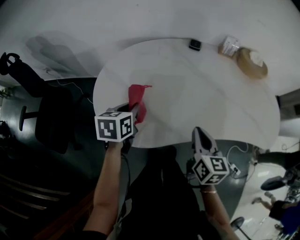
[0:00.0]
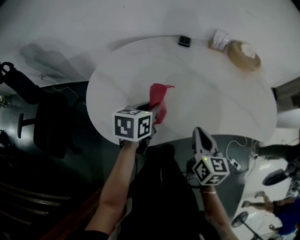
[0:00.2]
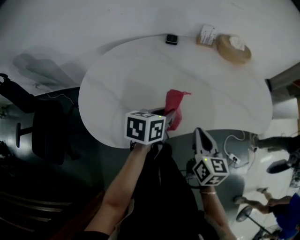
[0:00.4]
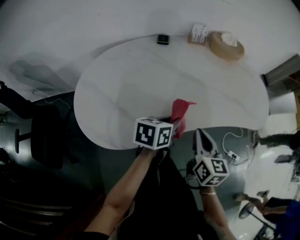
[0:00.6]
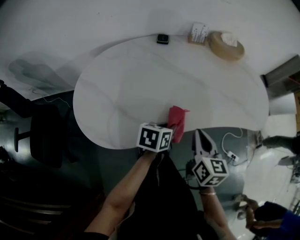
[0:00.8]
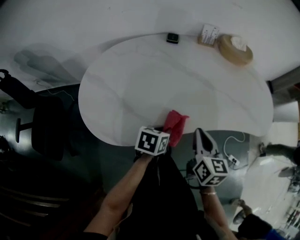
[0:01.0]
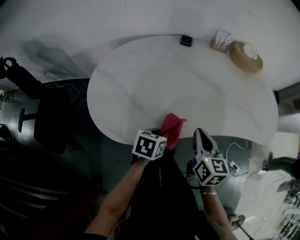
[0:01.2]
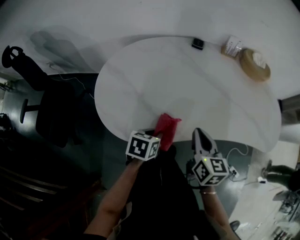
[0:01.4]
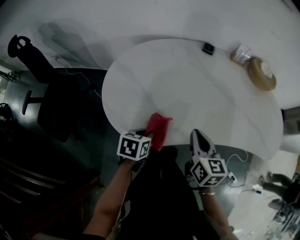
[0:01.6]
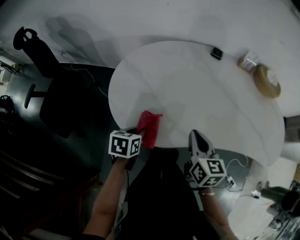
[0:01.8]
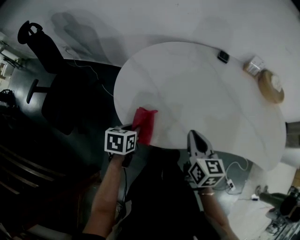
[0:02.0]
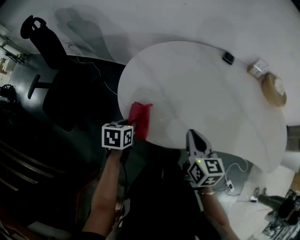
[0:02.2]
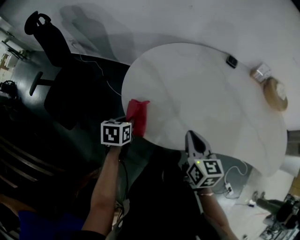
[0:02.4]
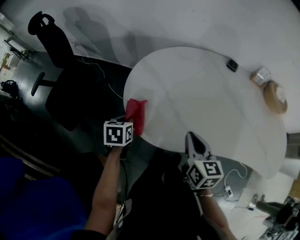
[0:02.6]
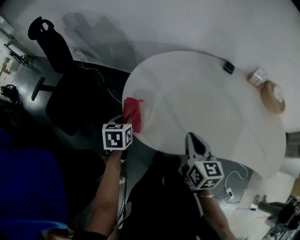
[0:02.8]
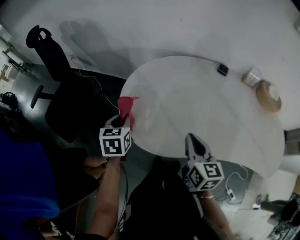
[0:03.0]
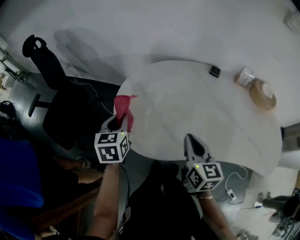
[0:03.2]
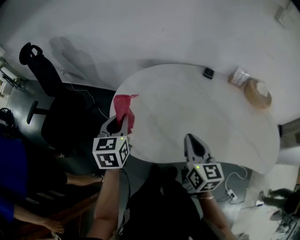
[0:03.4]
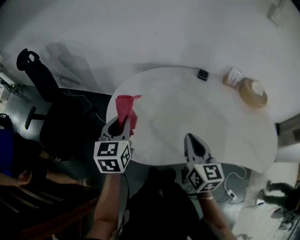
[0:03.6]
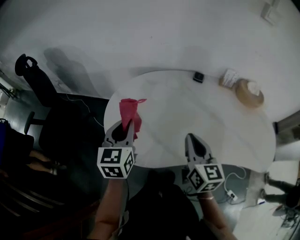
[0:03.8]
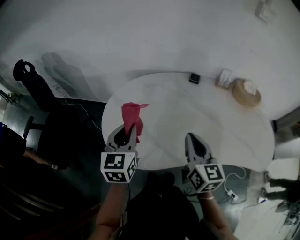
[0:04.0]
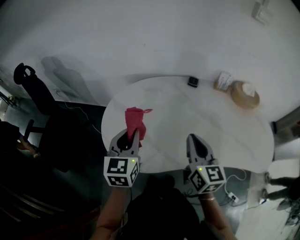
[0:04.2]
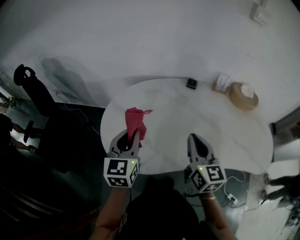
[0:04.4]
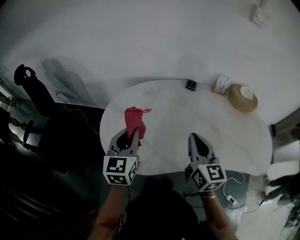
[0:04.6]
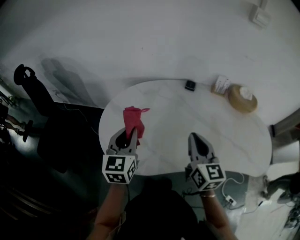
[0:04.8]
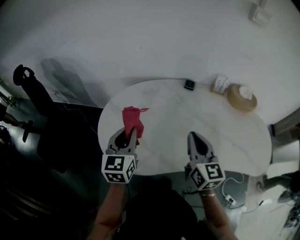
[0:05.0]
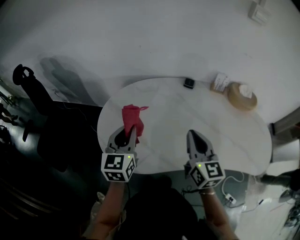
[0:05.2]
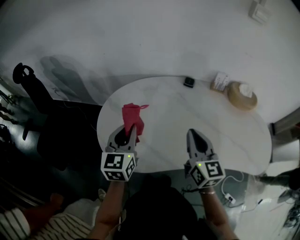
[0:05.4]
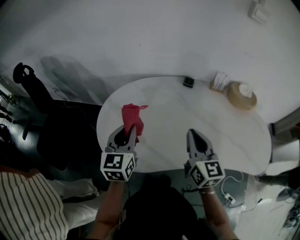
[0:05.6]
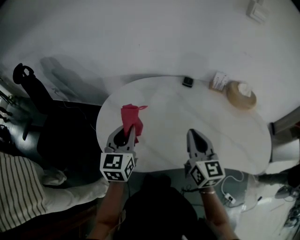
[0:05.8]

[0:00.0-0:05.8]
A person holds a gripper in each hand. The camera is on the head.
0:01.4 to 0:02.8: The left gripper moves about 25 cm, and swivels about 40 degrees, while the right gripper ends up some 15 cm from where it was.
0:02.8 to 0:04.4: The right gripper shifts some 15 cm to the right and upward, and turns by some 20 degrees; the left gripper goes approximately 25 cm upward and to the right, and points its fingers some 30 degrees further upward.
0:04.4 to 0:05.8: There are only small adjustments of the grippers.

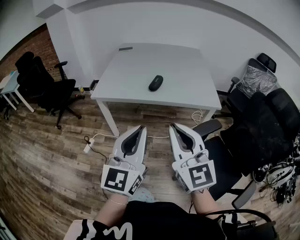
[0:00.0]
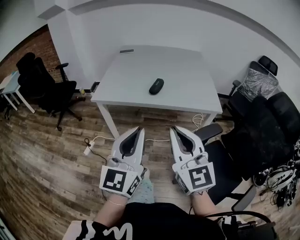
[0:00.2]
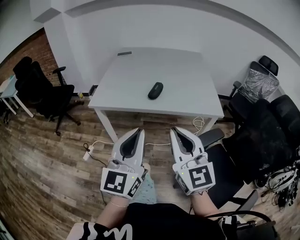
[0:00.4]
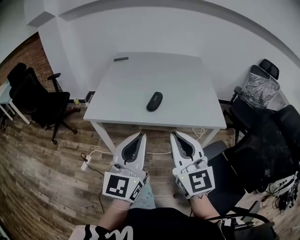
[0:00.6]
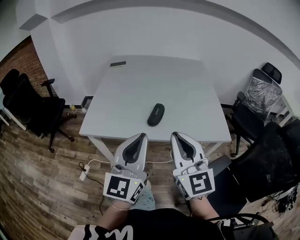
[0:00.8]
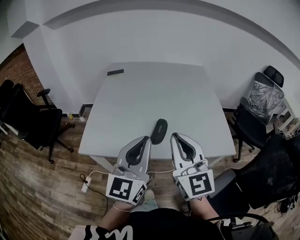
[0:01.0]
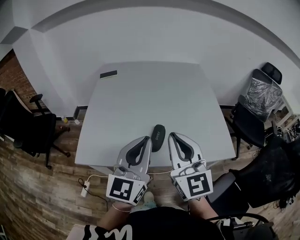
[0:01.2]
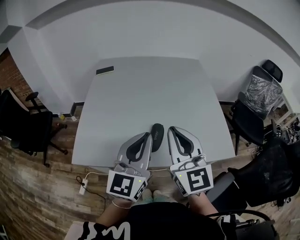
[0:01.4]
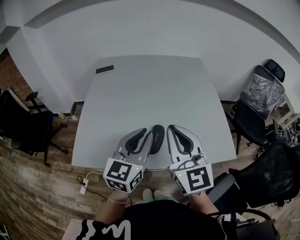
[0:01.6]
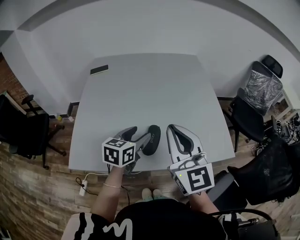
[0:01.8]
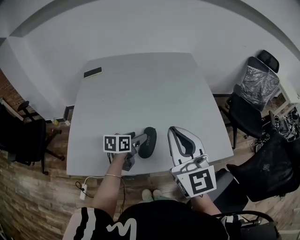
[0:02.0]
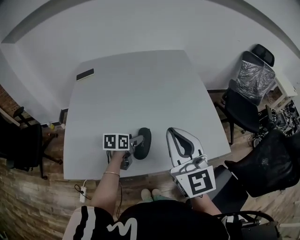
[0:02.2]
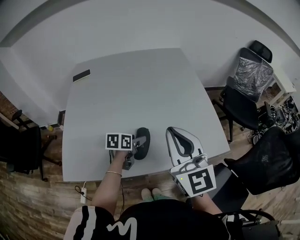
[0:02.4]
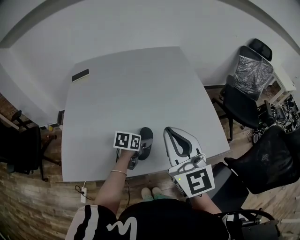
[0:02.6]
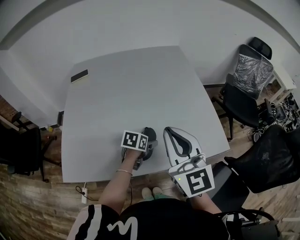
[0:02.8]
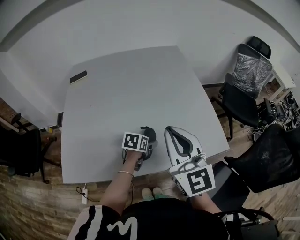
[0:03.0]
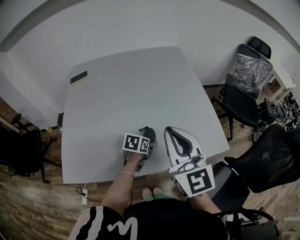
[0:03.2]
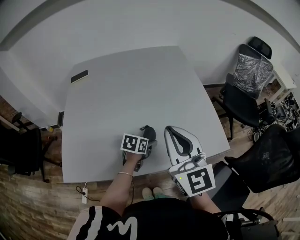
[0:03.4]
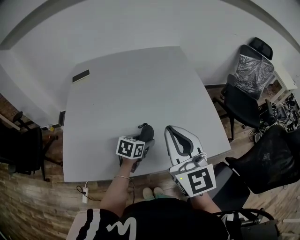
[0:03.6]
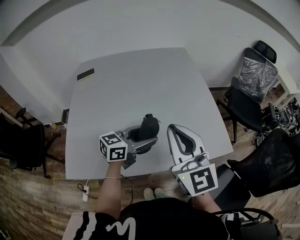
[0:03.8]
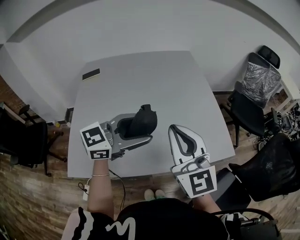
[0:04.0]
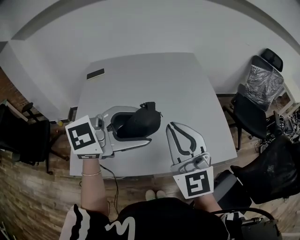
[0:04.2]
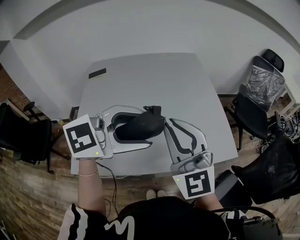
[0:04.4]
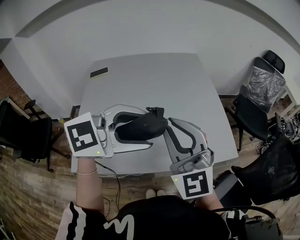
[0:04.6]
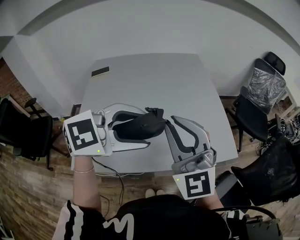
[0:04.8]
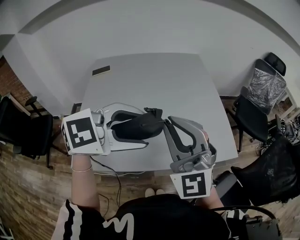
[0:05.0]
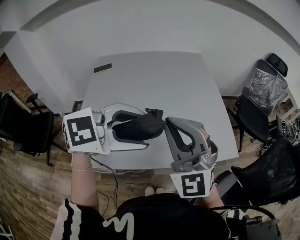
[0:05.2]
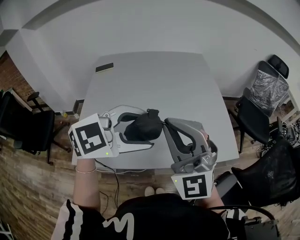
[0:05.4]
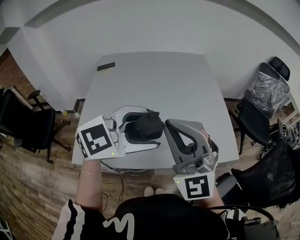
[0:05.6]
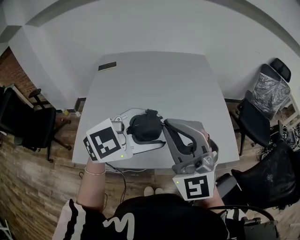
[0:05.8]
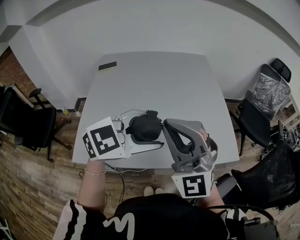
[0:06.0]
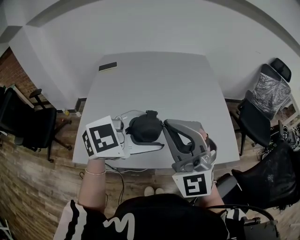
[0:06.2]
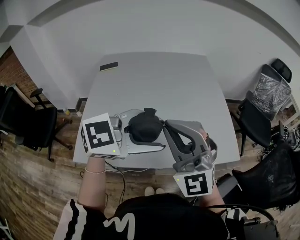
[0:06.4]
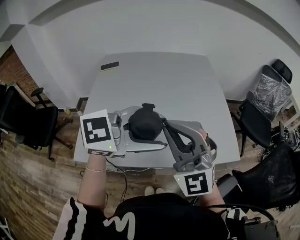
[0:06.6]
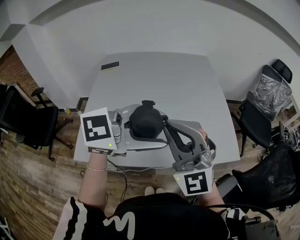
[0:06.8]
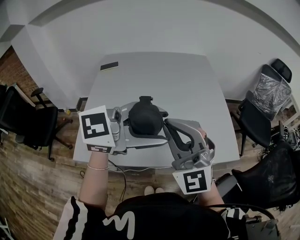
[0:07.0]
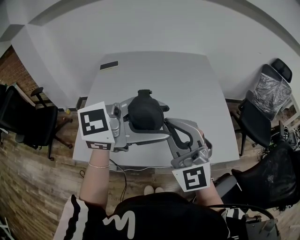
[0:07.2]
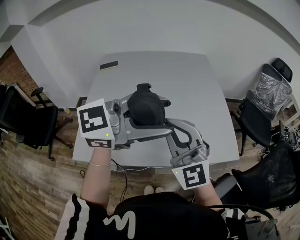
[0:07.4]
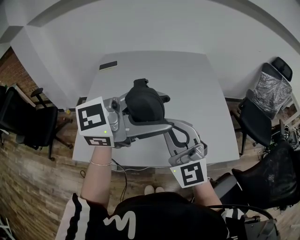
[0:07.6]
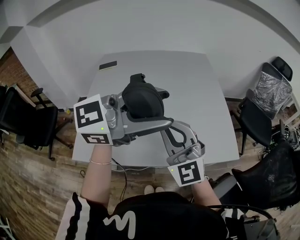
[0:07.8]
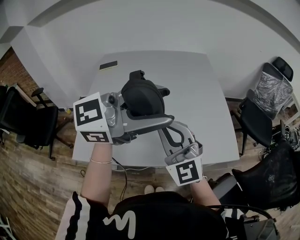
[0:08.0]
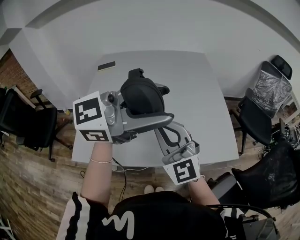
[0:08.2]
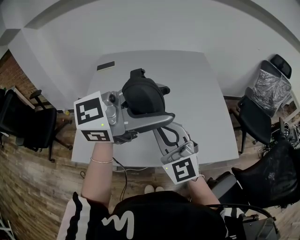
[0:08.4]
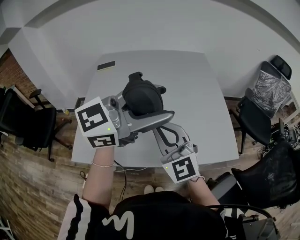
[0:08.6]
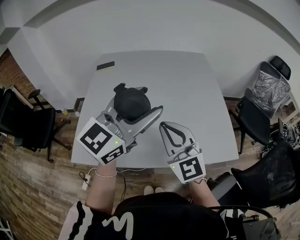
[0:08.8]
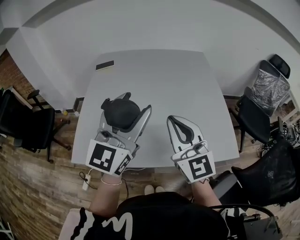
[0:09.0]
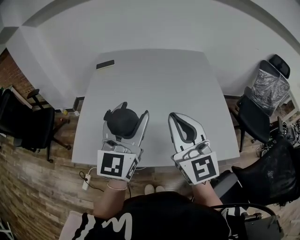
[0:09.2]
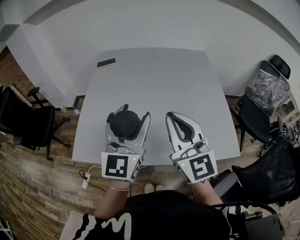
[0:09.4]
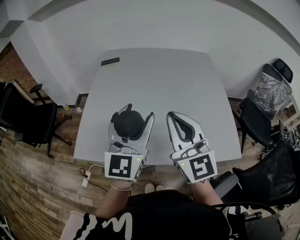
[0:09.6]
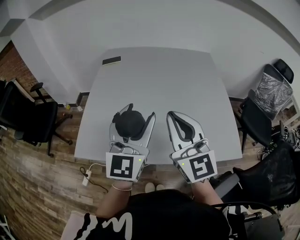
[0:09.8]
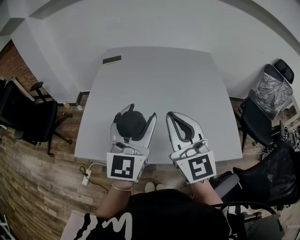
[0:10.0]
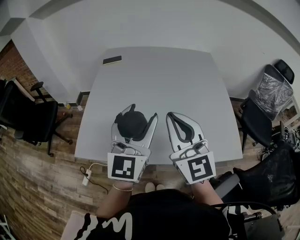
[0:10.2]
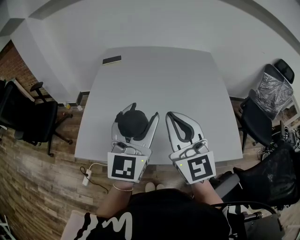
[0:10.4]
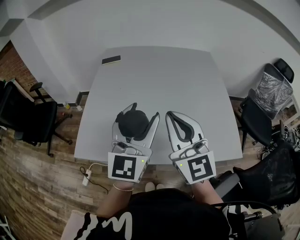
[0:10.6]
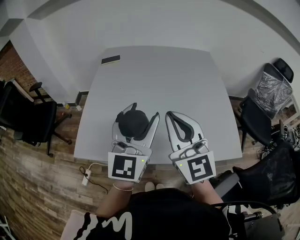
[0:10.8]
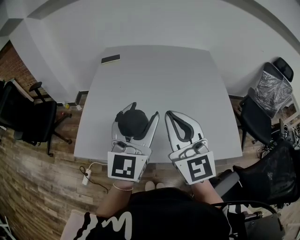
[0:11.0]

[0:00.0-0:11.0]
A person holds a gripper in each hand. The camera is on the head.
0:00.0 to 0:01.6: The pair of grippers is taken forward, about 50 cm. The left gripper rotates approximately 20 degrees.
0:01.6 to 0:03.2: The right gripper moves to the right and forward, some 10 cm, while the left gripper moves downward, some 25 cm, points its fingers roughly 40 degrees further downward, and opens its fingers.
0:03.2 to 0:04.8: The right gripper moves upward, to the left and backward, roughly 10 cm, and rotates some 30 degrees. The left gripper travels upward by about 35 cm, and rotates around the line of its fingers by about 60 degrees, clockwise from behind.
0:04.8 to 0:06.2: The grippers move only a little.
0:06.2 to 0:07.8: The right gripper goes approximately 5 cm downward. The left gripper is displaced upward by about 10 cm, and changes its angle by roughly 30 degrees.
0:07.8 to 0:09.4: The right gripper swivels approximately 20 degrees. The left gripper shifts by roughly 15 cm, and turns by roughly 60 degrees.
0:09.4 to 0:11.0: There are only small adjustments of the grippers.

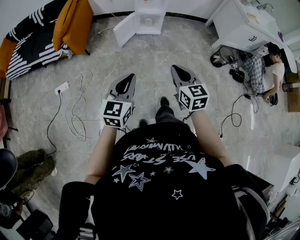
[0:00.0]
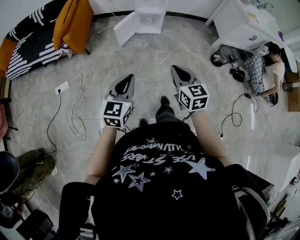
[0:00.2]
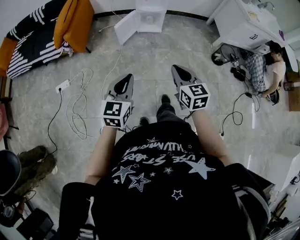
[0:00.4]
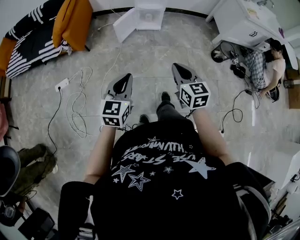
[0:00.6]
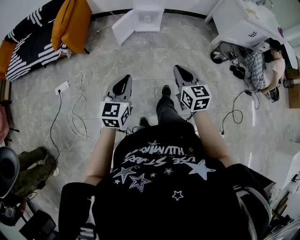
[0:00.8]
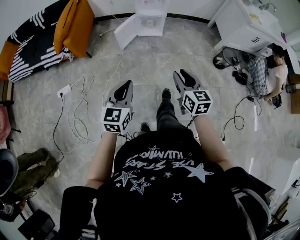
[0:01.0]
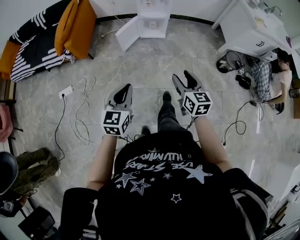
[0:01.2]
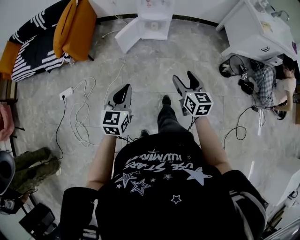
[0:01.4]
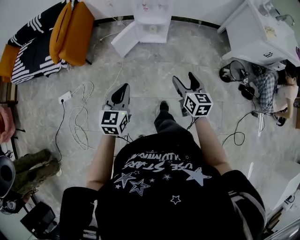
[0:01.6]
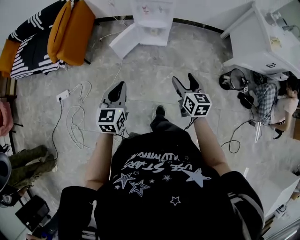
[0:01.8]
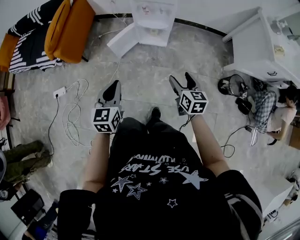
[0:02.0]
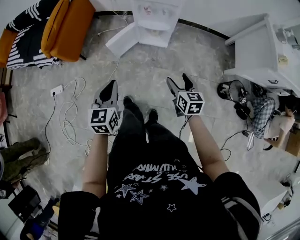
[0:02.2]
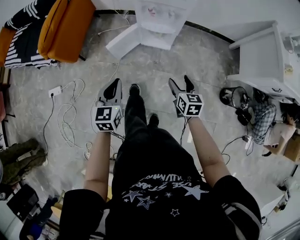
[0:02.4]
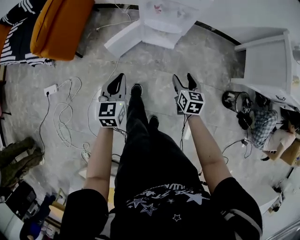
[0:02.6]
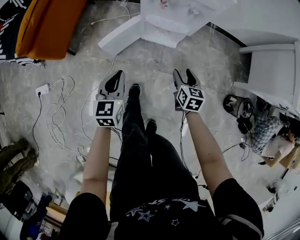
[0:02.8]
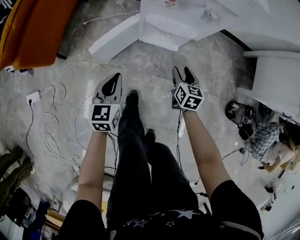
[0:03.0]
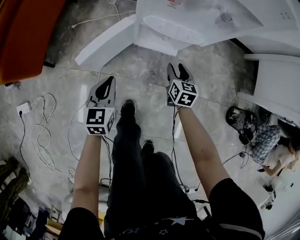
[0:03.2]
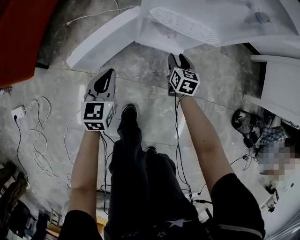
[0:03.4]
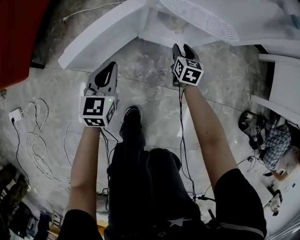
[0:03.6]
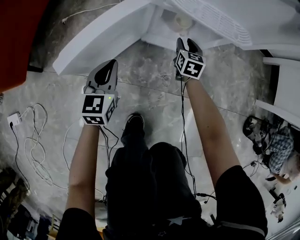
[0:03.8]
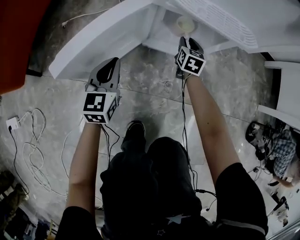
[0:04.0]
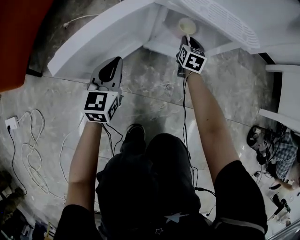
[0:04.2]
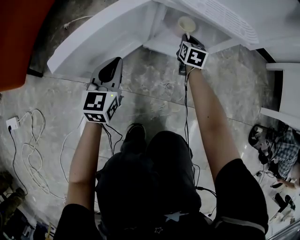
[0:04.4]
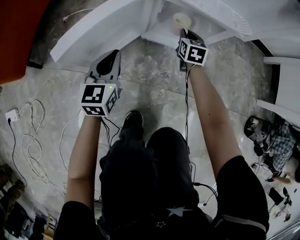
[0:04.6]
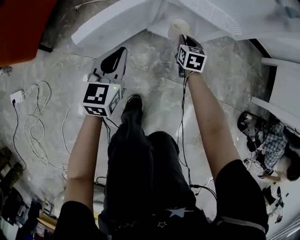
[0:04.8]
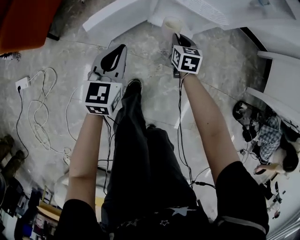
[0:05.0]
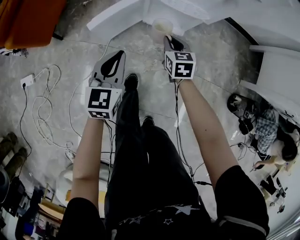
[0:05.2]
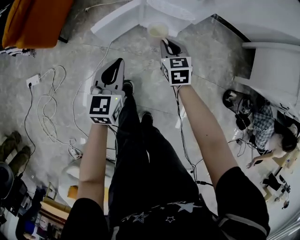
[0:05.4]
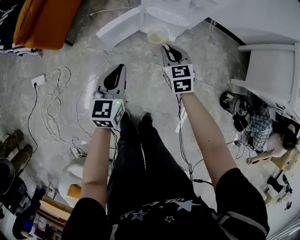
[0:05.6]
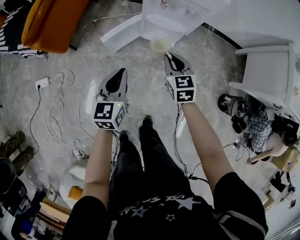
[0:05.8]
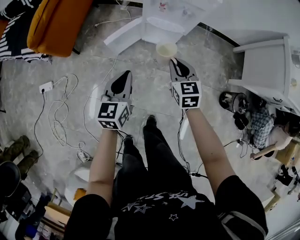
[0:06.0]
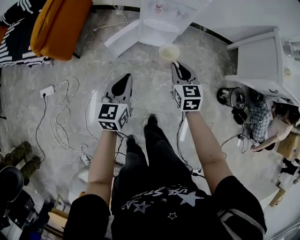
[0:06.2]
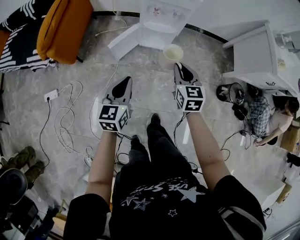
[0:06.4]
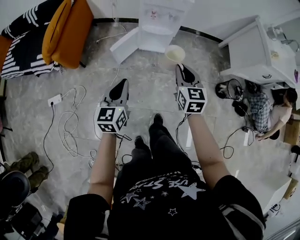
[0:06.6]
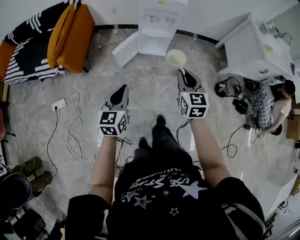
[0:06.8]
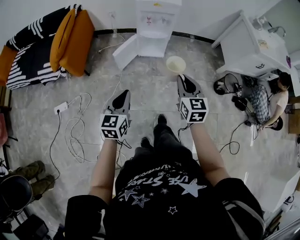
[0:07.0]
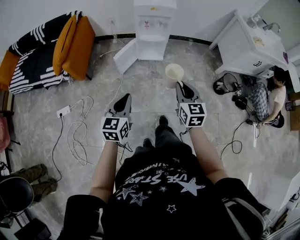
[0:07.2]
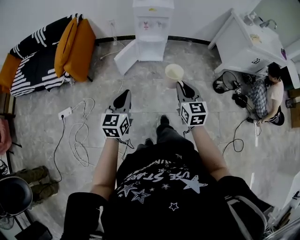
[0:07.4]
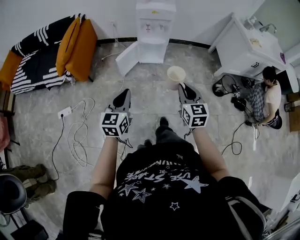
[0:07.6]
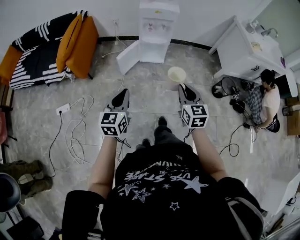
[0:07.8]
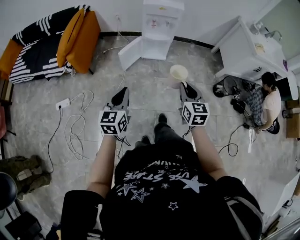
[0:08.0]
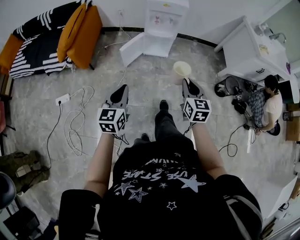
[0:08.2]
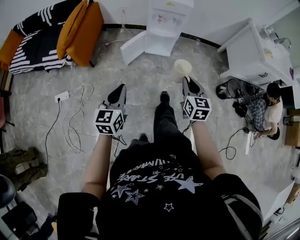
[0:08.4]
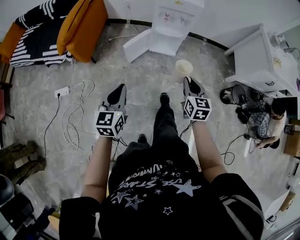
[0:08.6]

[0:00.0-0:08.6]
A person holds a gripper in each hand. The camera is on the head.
0:00.0 to 0:01.4: The left gripper shifts some 10 cm forward. The right gripper travels forward, to the right and downward by about 15 cm, and opens its fingers.
0:01.4 to 0:02.8: Both grippers move forward and downward, about 50 cm.
0:02.8 to 0:04.4: Both grippers travel together downward and forward, roughly 50 cm. The right gripper closes its fingers.
0:04.4 to 0:05.8: Both grippers travel together upward and backward, approximately 60 cm. The right gripper rotates about 20 degrees.
0:05.8 to 0:07.2: Both grippers travel together backward and upward, about 40 cm. The right gripper changes its angle by about 30 degrees.
0:07.2 to 0:08.6: The left gripper travels to the left and forward by some 5 cm; the right gripper moves forward and downward, some 10 cm.
